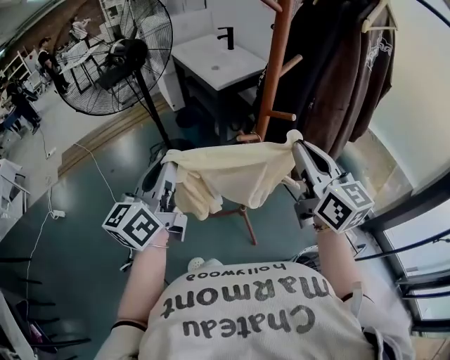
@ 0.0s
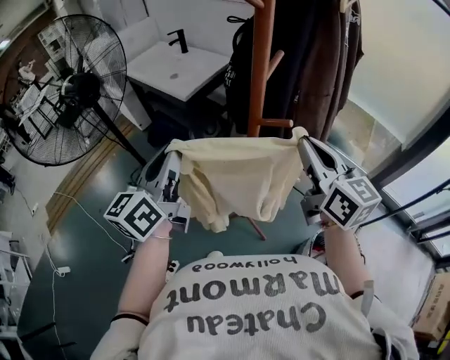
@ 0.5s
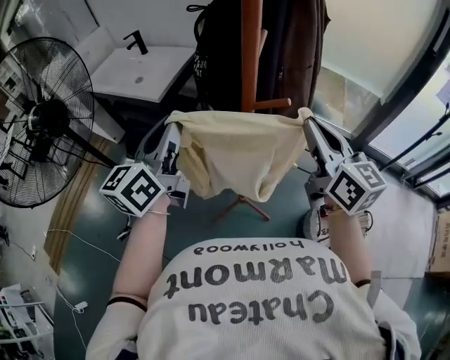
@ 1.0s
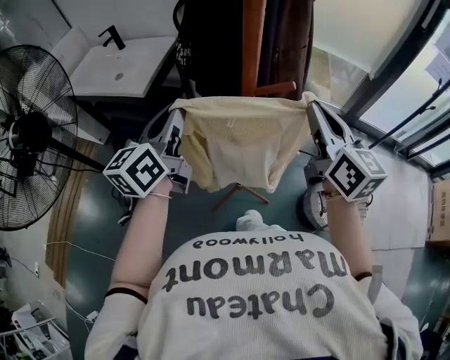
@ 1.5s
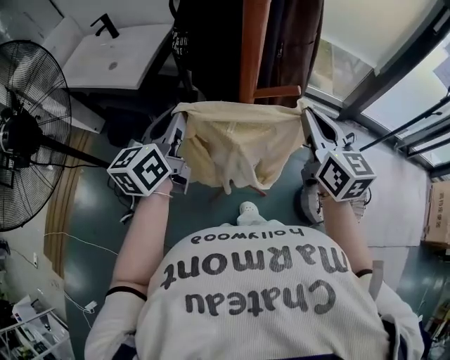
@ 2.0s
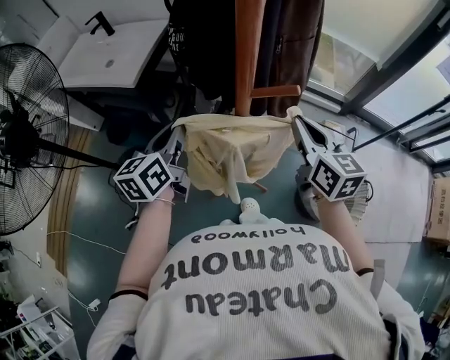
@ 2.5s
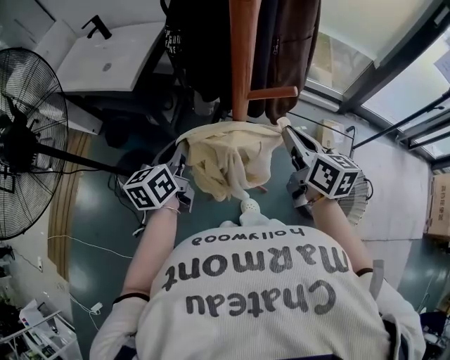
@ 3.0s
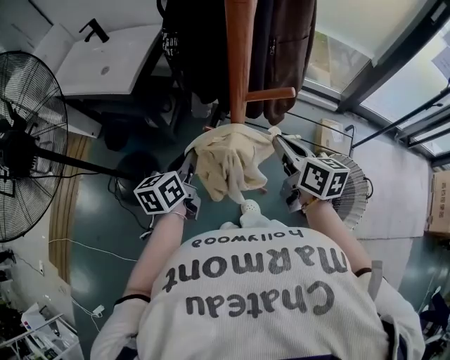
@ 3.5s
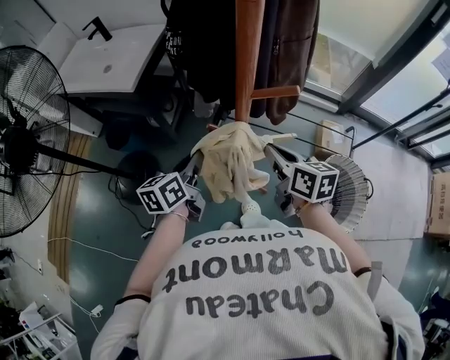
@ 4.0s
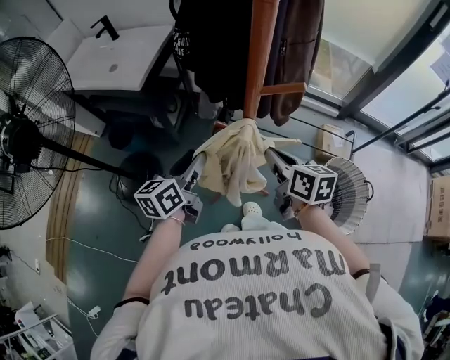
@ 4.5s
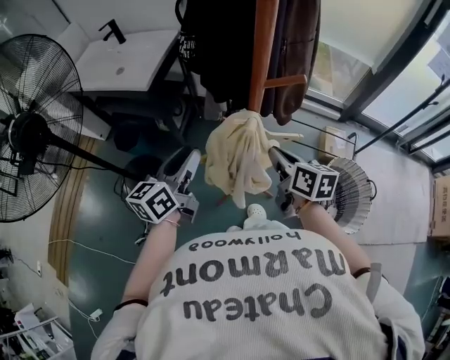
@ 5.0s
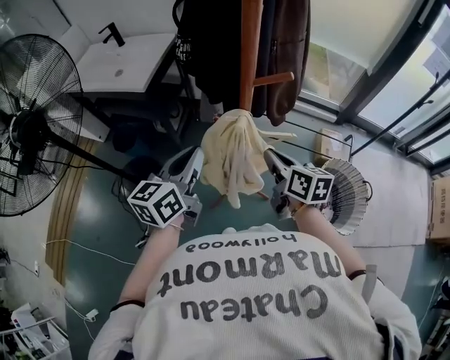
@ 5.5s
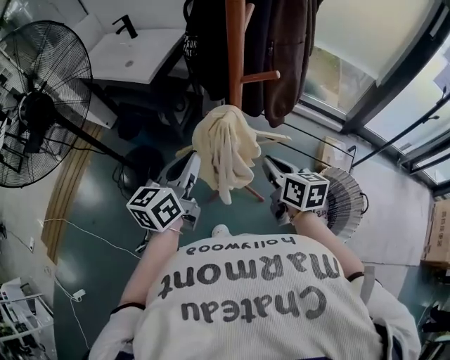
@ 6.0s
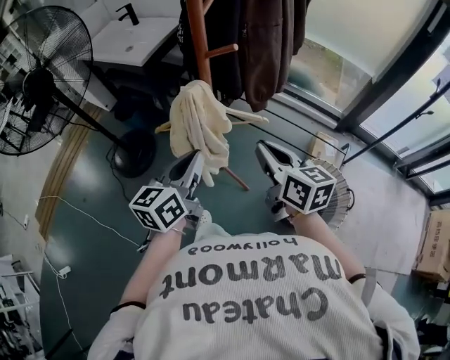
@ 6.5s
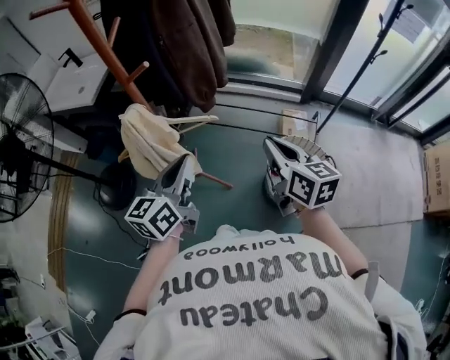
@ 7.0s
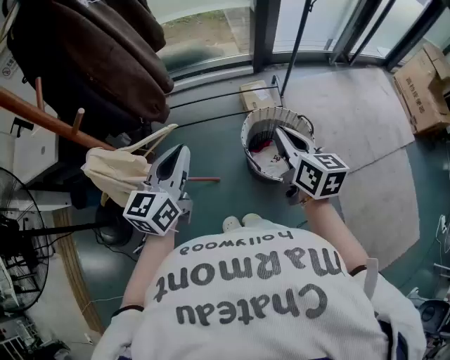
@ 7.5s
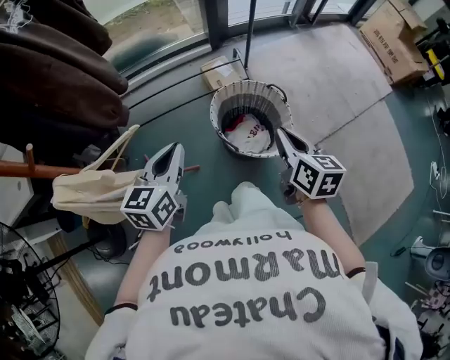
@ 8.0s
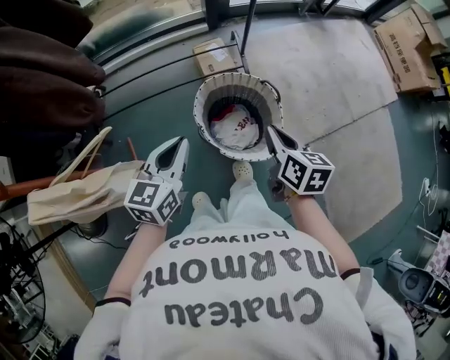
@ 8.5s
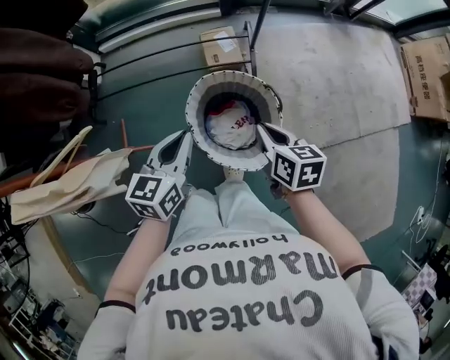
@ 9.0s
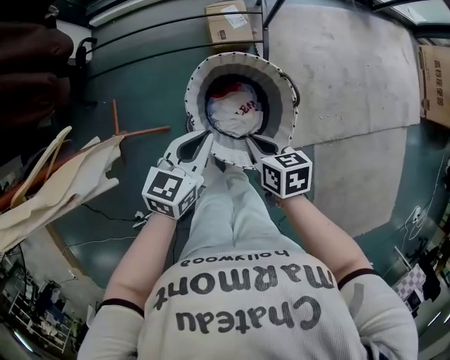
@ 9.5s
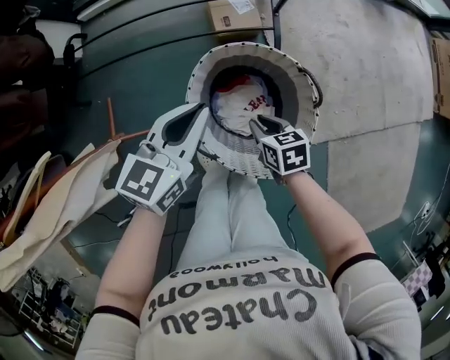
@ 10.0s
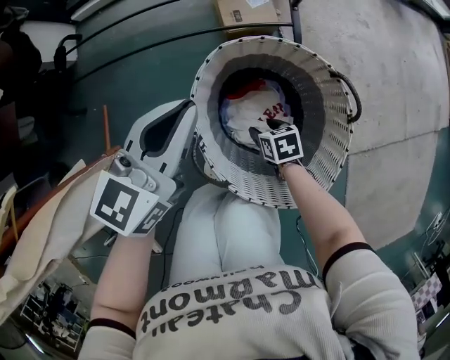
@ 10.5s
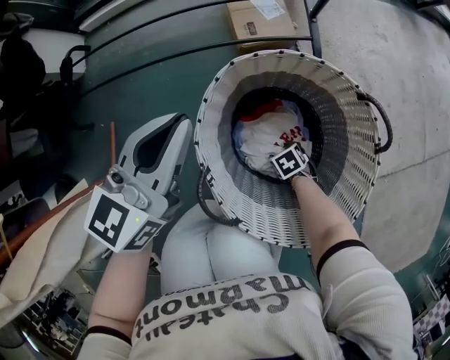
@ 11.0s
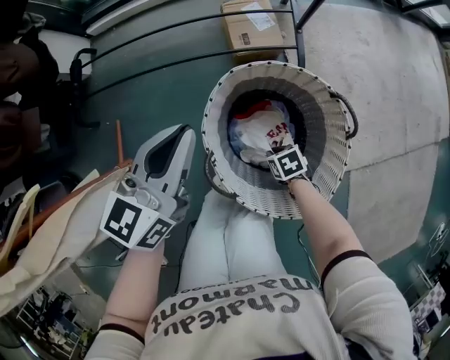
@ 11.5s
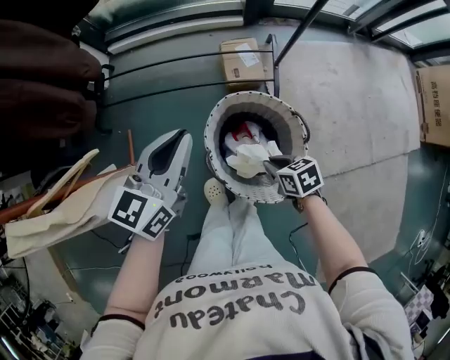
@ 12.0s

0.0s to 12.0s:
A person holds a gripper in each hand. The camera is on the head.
0.0s to 2.0s: The right gripper goes roughly 10 cm downward, and rotates approximately 50 degrees, while the left gripper moves roughly 30 cm, and swivels some 40 degrees.
2.0s to 4.0s: The right gripper shifts about 15 cm downward and to the left, and rotates approximately 30 degrees. Meanwhile the left gripper moves downward, approximately 15 cm, and rotates some 20 degrees.
4.0s to 6.0s: The left gripper goes approximately 15 cm upward and backward, and opens, then closes once more, while the right gripper goes approximately 10 cm backward.
6.0s to 8.0s: The left gripper moves about 40 cm, and swivels roughly 40 degrees; the right gripper goes upward and returns, roughly 5 cm each way, and changes its angle by approximately 50 degrees.
8.0s to 10.0s: The right gripper travels downward by some 40 cm, and turns by about 50 degrees. The left gripper is displaced downward, forward and to the right by approximately 35 cm.
10.0s to 12.0s: The right gripper moves roughly 35 cm downward and comes back, and opens, then closes again. The left gripper is displaced upward by some 15 cm.

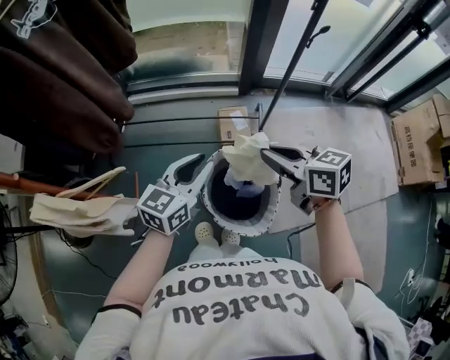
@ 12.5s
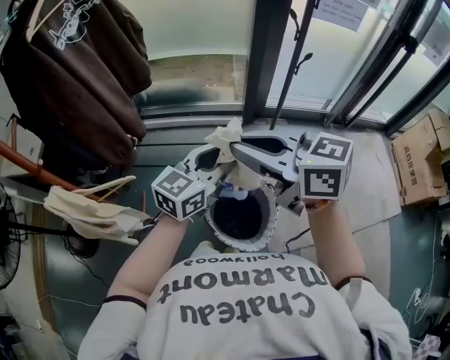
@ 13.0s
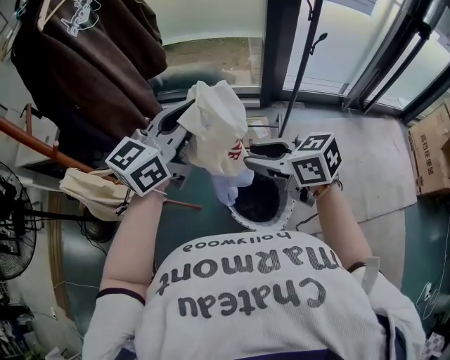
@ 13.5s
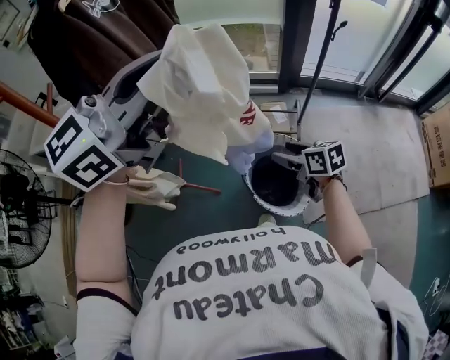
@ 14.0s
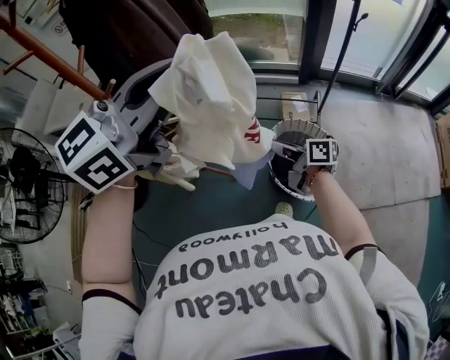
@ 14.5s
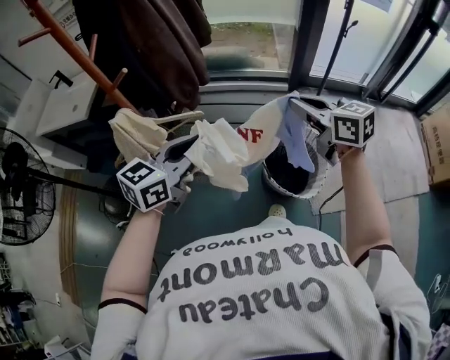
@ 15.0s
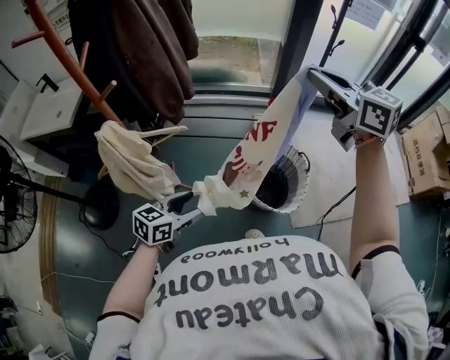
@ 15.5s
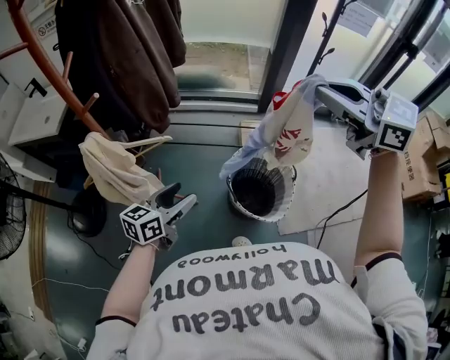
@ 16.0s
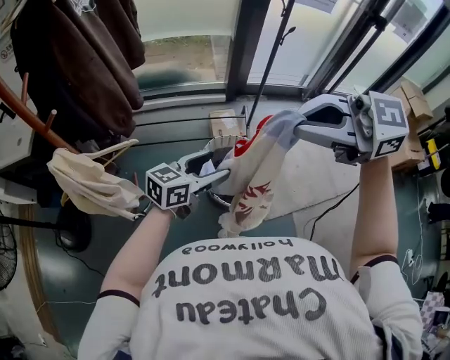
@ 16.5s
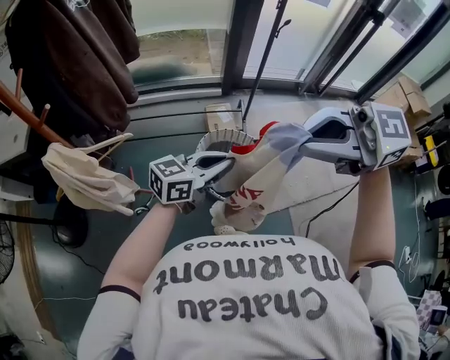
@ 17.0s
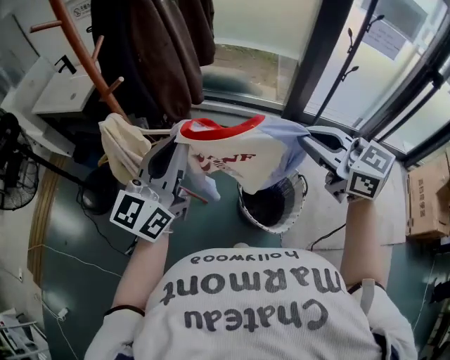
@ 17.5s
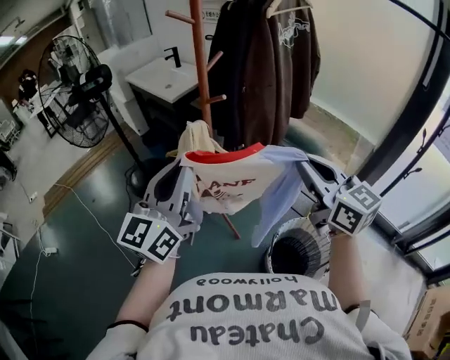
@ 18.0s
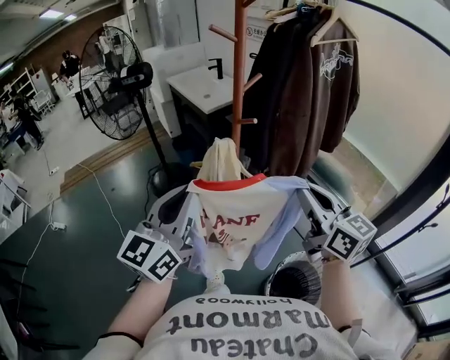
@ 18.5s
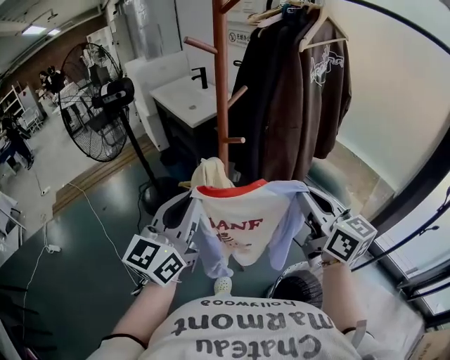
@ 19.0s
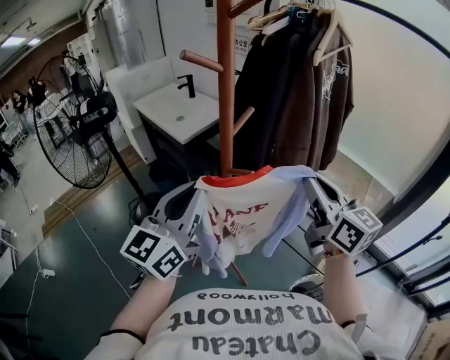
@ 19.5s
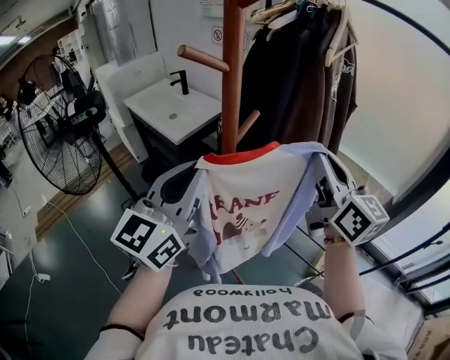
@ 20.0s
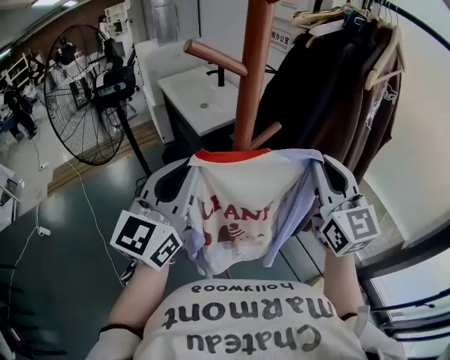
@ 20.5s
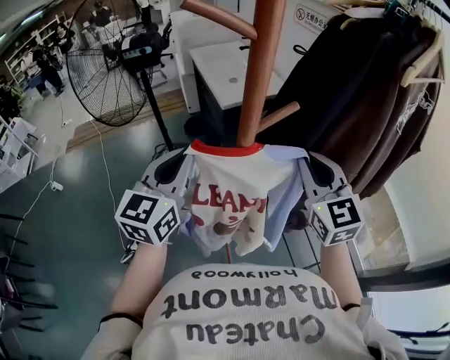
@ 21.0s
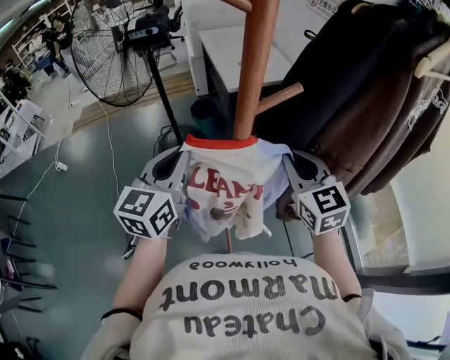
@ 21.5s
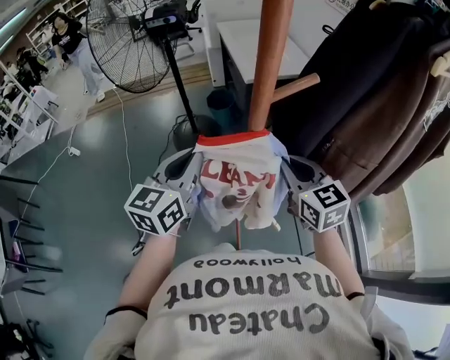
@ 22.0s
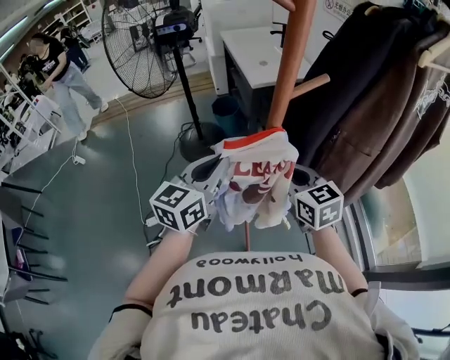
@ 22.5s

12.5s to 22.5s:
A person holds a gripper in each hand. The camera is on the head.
12.5s to 14.5s: The left gripper travels upward and to the left by approximately 40 cm, and rotates some 20 degrees; the right gripper travels to the left and backward by about 25 cm, goes upward and returns, about 20 cm each way, changes its angle by some 40 degrees, and opens and closes again.
14.5s to 16.5s: The right gripper travels upward by some 30 cm, and rotates around the line of its fingers by roughly 60 degrees, counterclockwise from behind. Meanwhile the left gripper travels downward by some 30 cm, changes its angle by about 30 degrees, and opens its fingers.
16.5s to 18.5s: The left gripper ends up roughly 40 cm from where it was, changes its angle by roughly 90 degrees, and closes up, while the right gripper ends up about 25 cm from where it was, and swivels roughly 20 degrees.
18.5s to 20.5s: Both grippers move forward, roughly 30 cm. The right gripper rotates about 30 degrees.
20.5s to 22.5s: The right gripper is displaced downward and to the left by some 25 cm, and rotates some 40 degrees, while the left gripper shifts about 15 cm downward, and changes its angle by roughly 20 degrees.

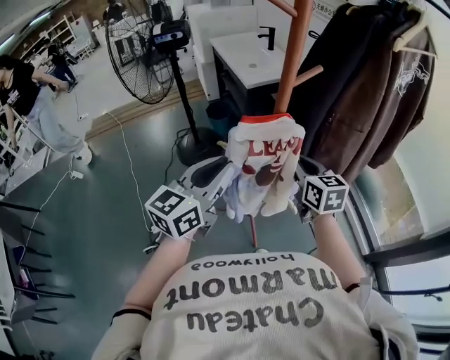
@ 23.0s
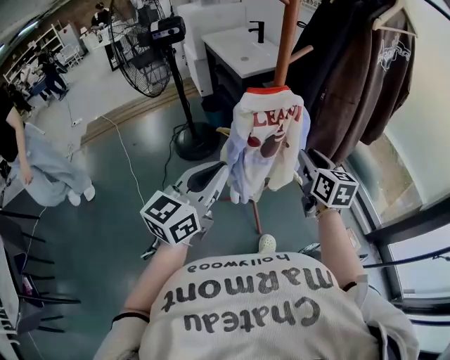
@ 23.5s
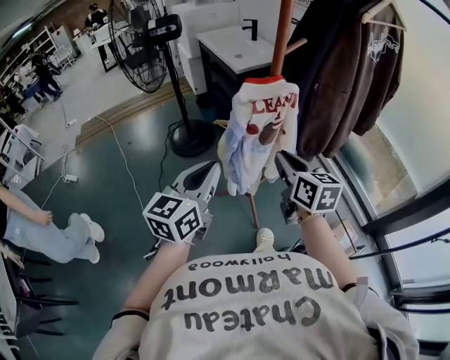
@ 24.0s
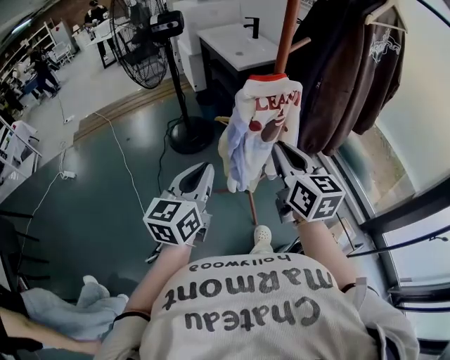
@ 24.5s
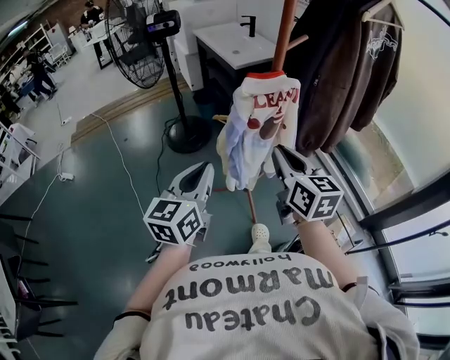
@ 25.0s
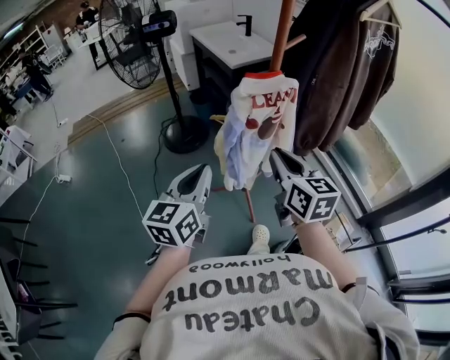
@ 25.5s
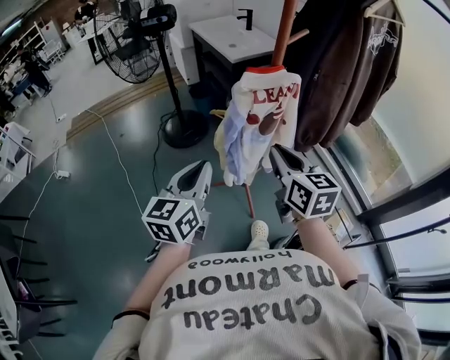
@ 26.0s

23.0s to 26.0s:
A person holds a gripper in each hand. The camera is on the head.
23.0s to 24.5s: The right gripper shifts roughly 20 cm backward, upward and to the left, while the left gripper is displaced backward and to the left by roughly 15 cm.
24.5s to 26.0s: The grippers move only a little.

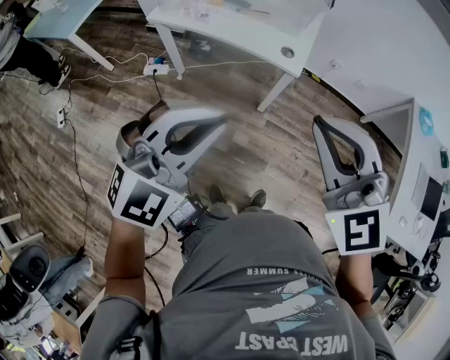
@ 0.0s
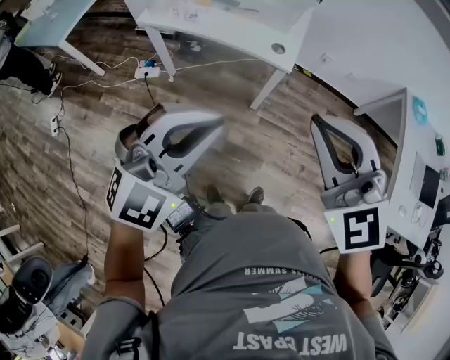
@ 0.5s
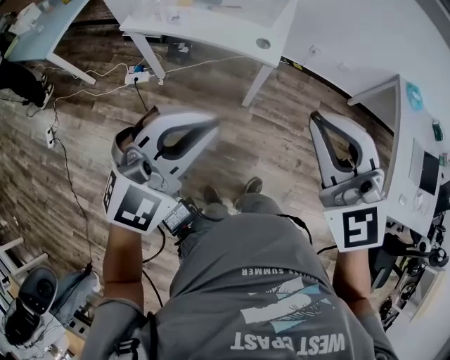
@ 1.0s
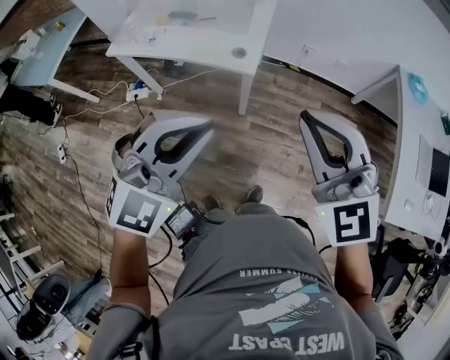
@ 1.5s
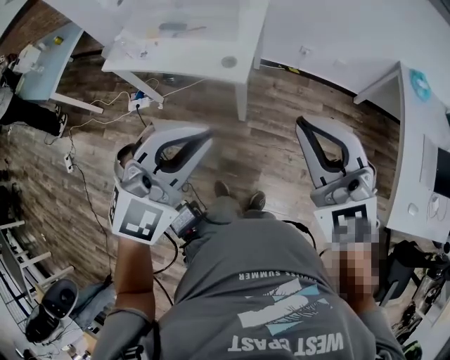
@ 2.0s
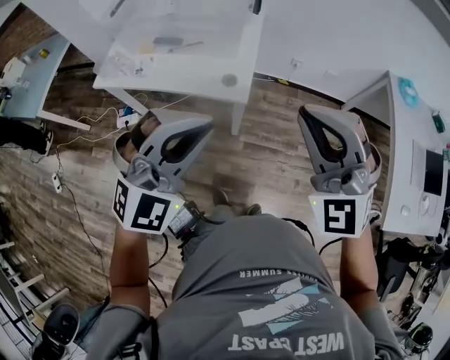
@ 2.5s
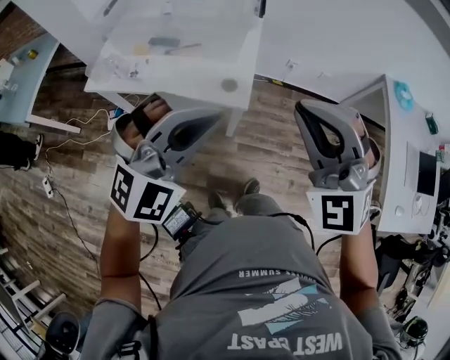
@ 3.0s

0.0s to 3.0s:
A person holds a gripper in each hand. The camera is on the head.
0.0s to 1.5s: The left gripper heads to the right and forward, covering approximately 15 cm. The right gripper heads to the right, covering about 15 cm.
1.5s to 3.0s: The left gripper heads forward, covering approximately 15 cm; the right gripper goes approximately 15 cm forward and to the left, and rotates roughly 30 degrees.
